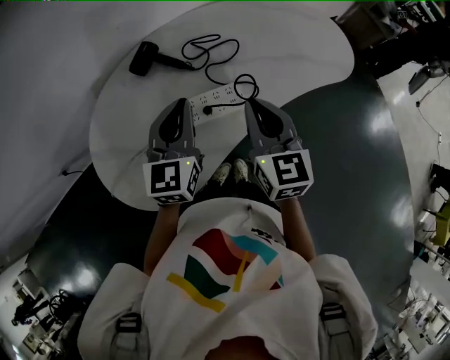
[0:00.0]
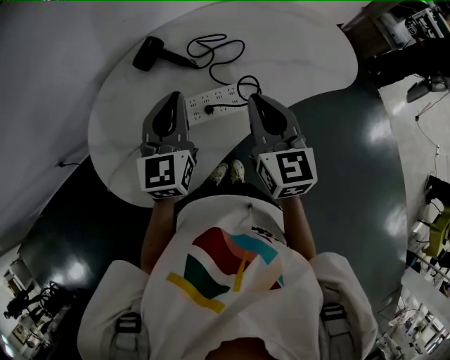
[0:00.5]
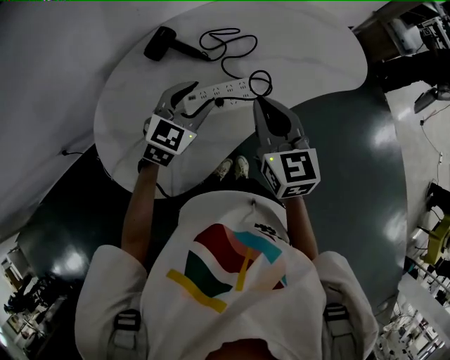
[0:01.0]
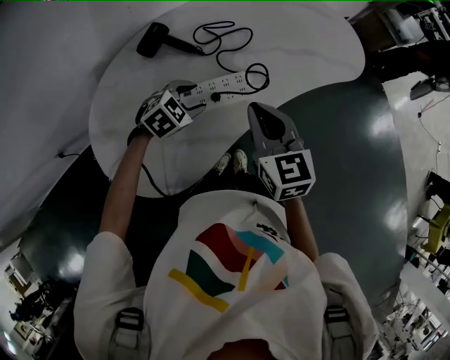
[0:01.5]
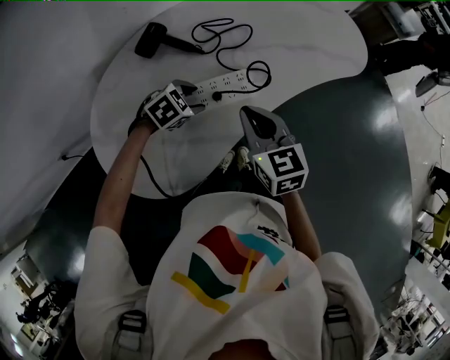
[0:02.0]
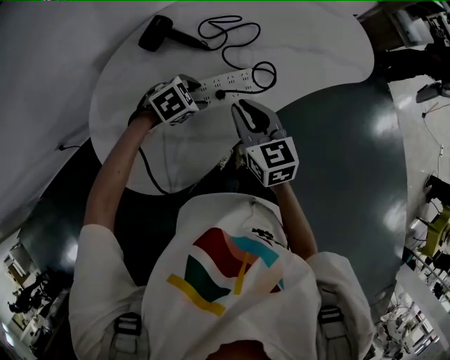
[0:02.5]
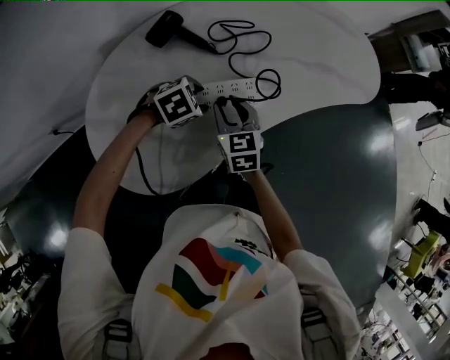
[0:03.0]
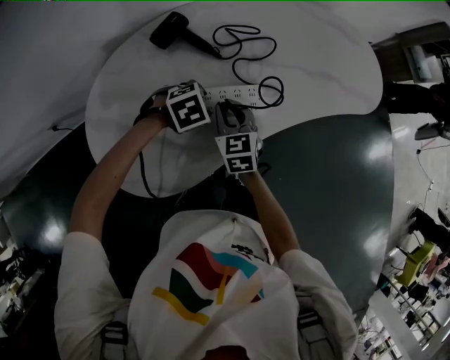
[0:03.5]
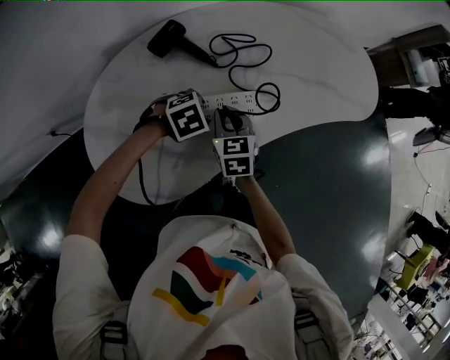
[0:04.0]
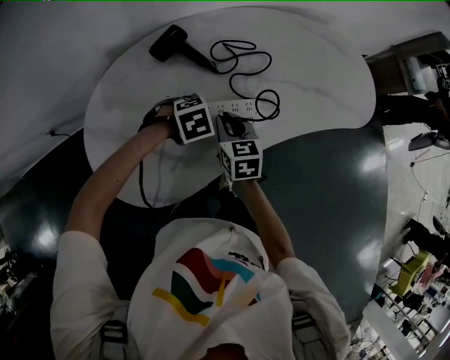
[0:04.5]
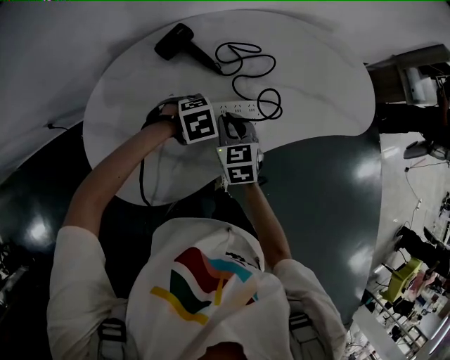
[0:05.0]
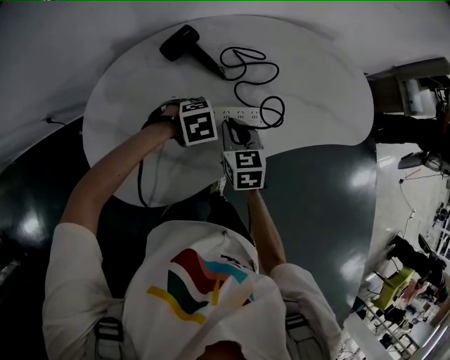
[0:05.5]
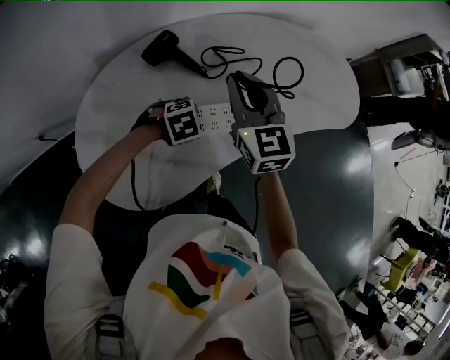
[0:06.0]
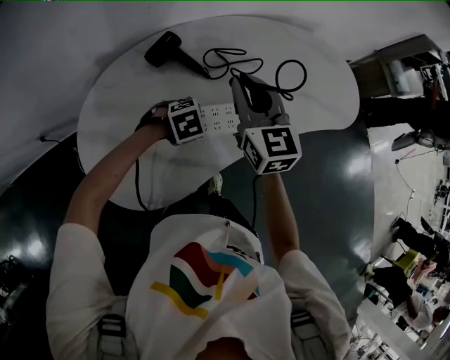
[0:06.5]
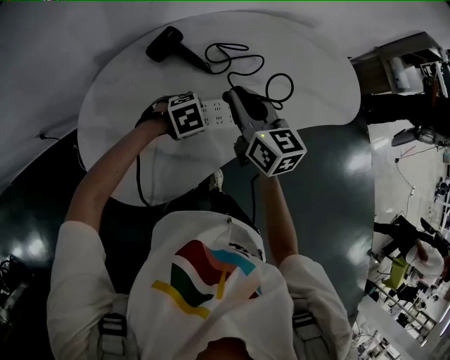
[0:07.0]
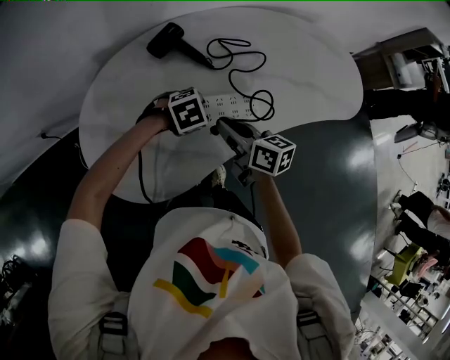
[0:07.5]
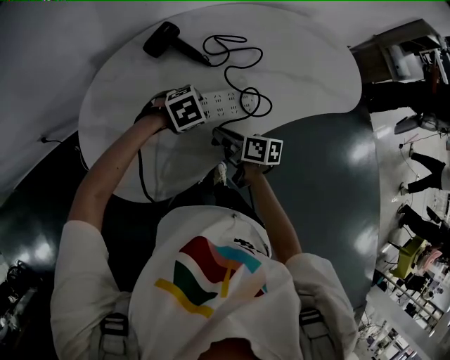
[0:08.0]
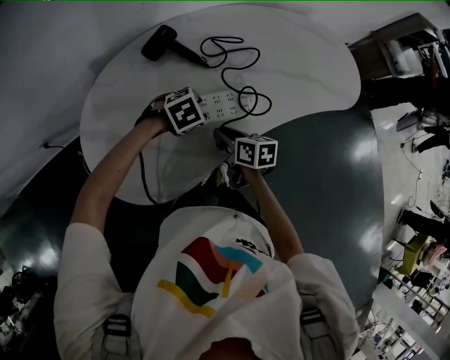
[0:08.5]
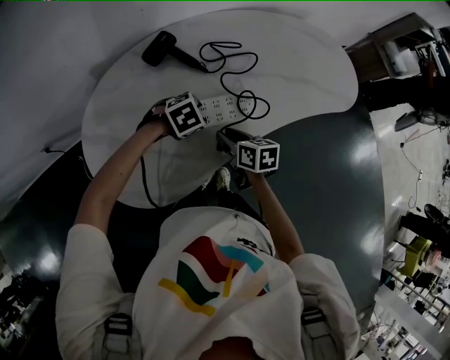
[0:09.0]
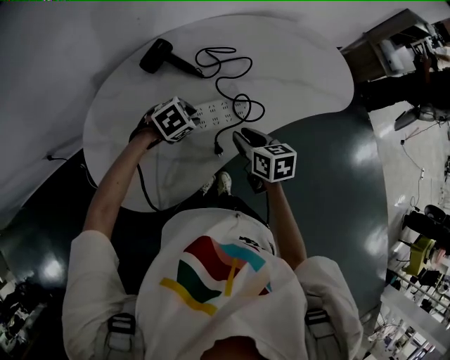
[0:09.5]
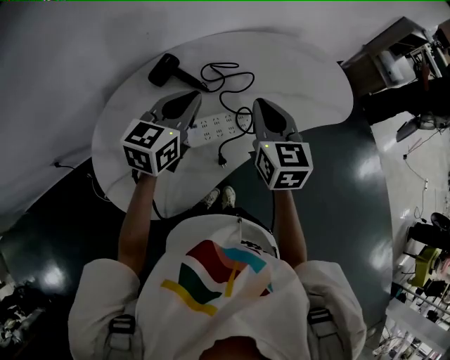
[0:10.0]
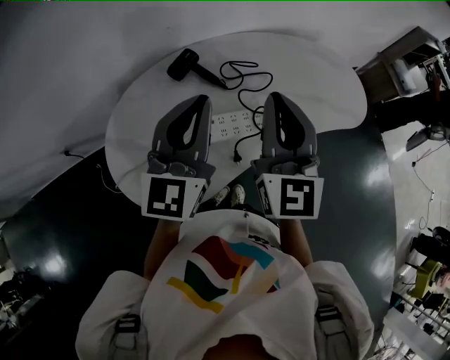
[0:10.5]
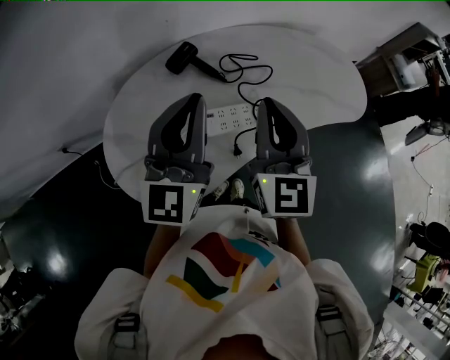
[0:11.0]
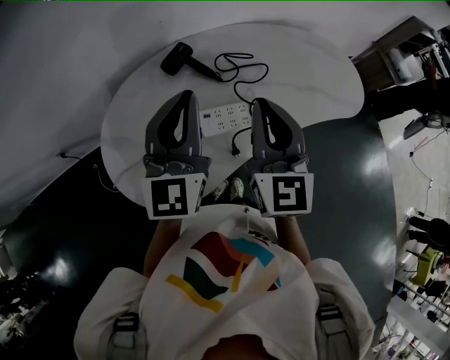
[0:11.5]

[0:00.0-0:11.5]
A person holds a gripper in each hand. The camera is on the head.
0:00.0 to 0:02.0: The left gripper is displaced downward by roughly 20 cm, tilts its fingers roughly 50 degrees downward, and opens its fingers; the right gripper goes approximately 10 cm downward.
0:02.0 to 0:04.0: The right gripper travels downward, to the left and forward by roughly 15 cm.
0:04.0 to 0:06.0: The right gripper travels upward by about 20 cm, and rotates some 30 degrees.
0:06.0 to 0:07.5: The right gripper moves downward, roughly 15 cm, and twists roughly 40 degrees clockwise, seen from behind.
0:07.5 to 0:09.5: The right gripper reaches approximately 10 cm downward, then returns, and rotates approximately 30 degrees. The left gripper closes.
0:09.5 to 0:11.5: The two grippers go about 30 cm upward. The left gripper tilts its fingers approximately 70 degrees upward, and closes up. Meanwhile the right gripper points its fingers some 40 degrees further upward, and closes.

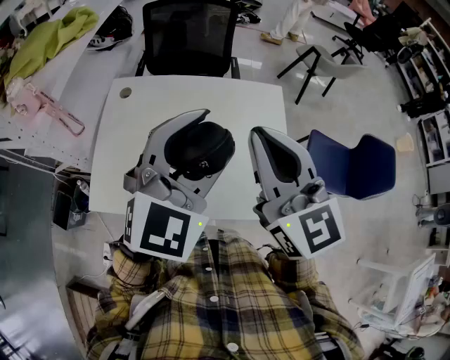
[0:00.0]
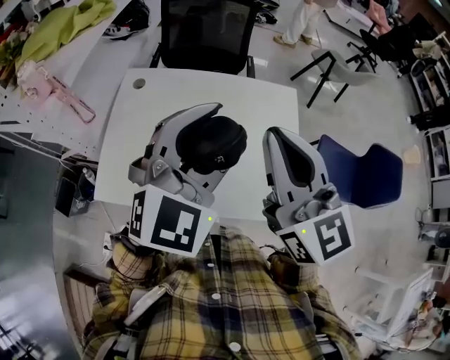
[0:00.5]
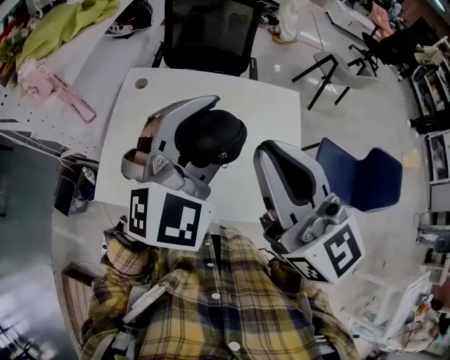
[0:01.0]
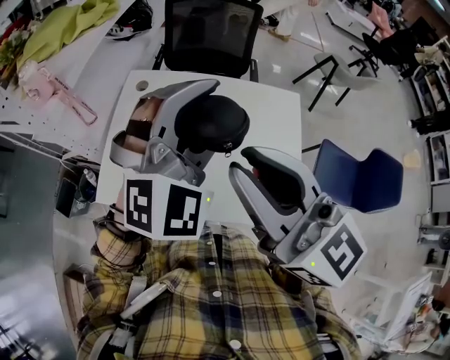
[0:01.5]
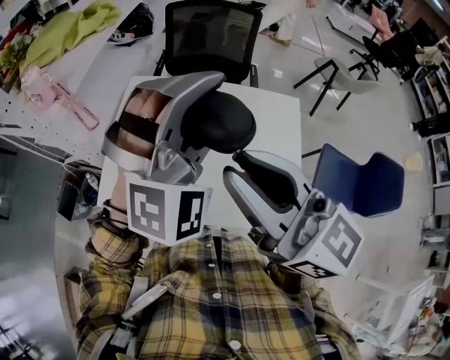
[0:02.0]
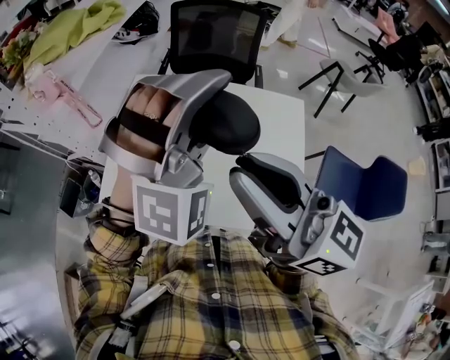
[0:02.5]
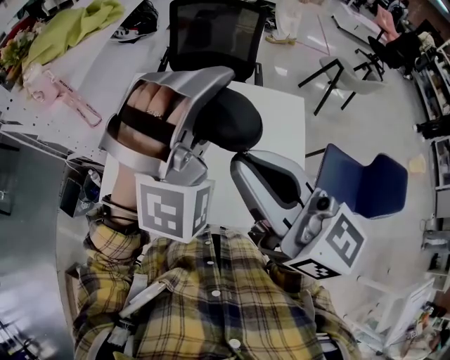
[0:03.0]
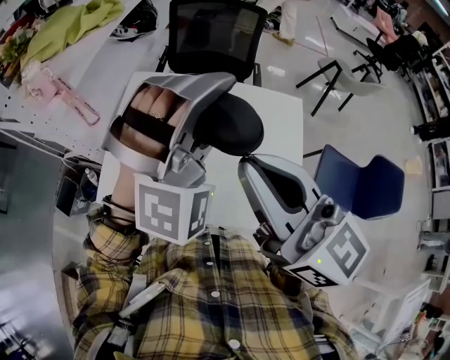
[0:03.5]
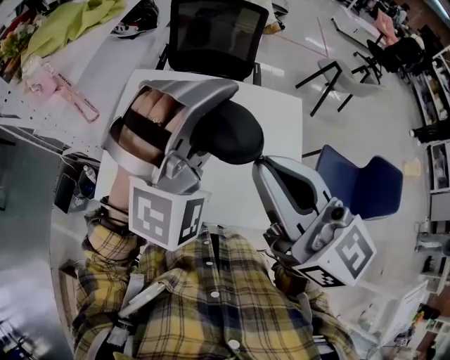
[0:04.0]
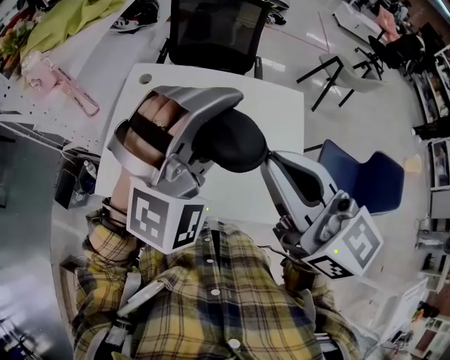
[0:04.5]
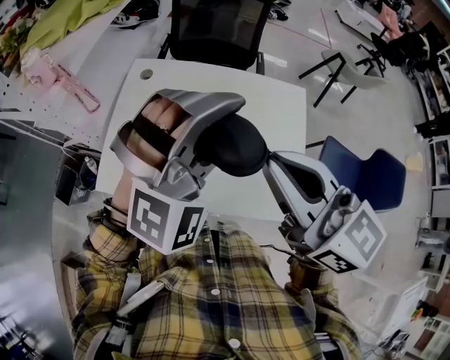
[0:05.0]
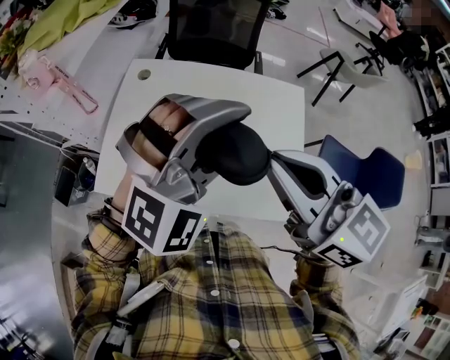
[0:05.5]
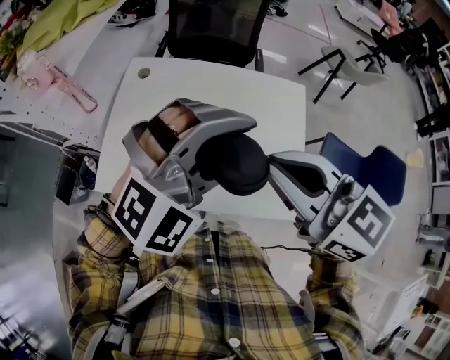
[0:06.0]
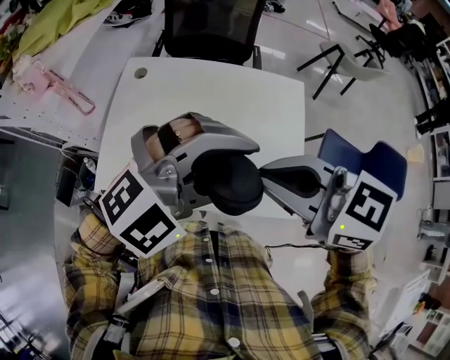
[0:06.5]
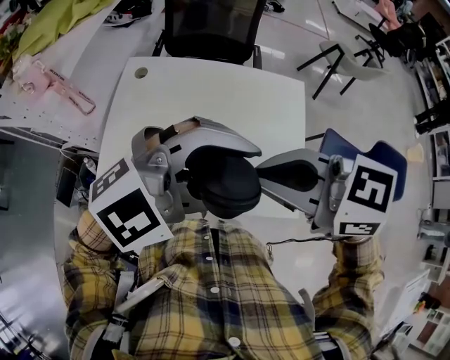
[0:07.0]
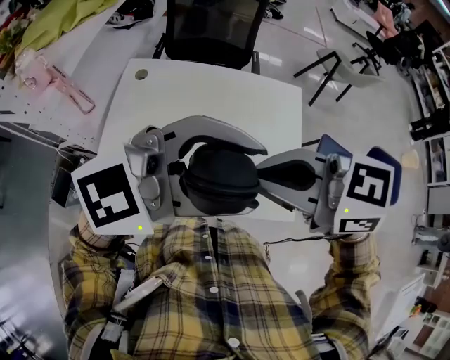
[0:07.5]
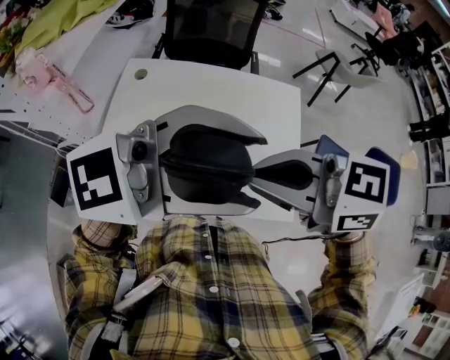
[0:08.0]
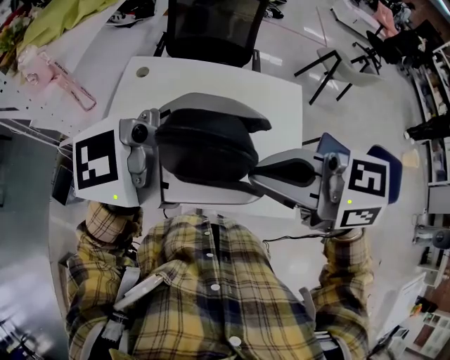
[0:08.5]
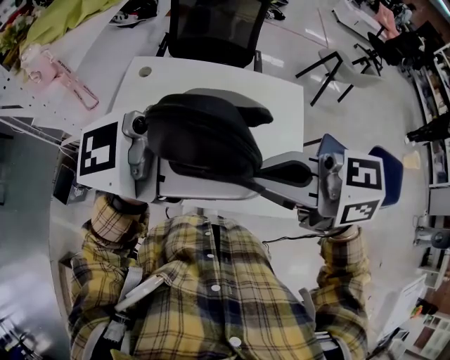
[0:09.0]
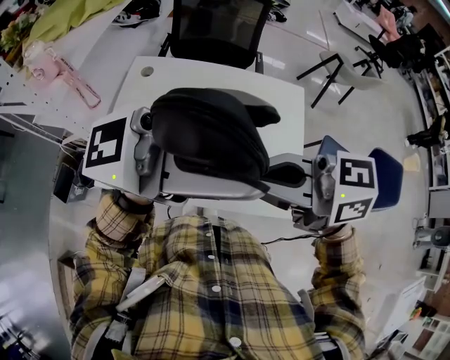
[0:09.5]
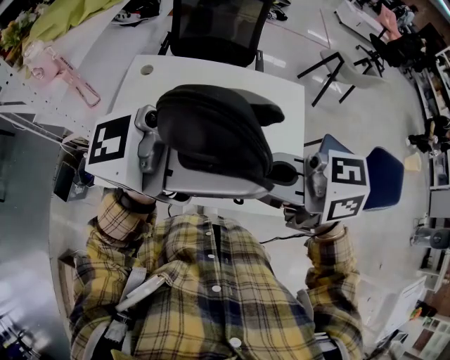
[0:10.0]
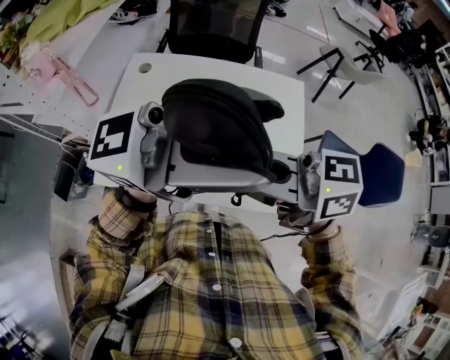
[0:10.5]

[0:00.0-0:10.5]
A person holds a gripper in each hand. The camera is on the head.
0:00.0 to 0:02.0: The left gripper moves forward, about 5 cm, and rotates around the line of its fingers by approximately 40 degrees, clockwise from behind; the right gripper travels to the left by roughly 5 cm, and swivels some 30 degrees.
0:02.0 to 0:04.0: There are only small adjustments of the grippers.
0:04.0 to 0:06.5: The right gripper heads downward, covering roughly 5 cm, and rotates approximately 30 degrees. Meanwhile the left gripper moves approximately 10 cm, and changes its angle by some 50 degrees.
0:06.5 to 0:08.5: The left gripper goes some 10 cm upward, and points its fingers some 40 degrees further upward.
0:08.5 to 0:10.5: There are only small adjustments of the grippers.

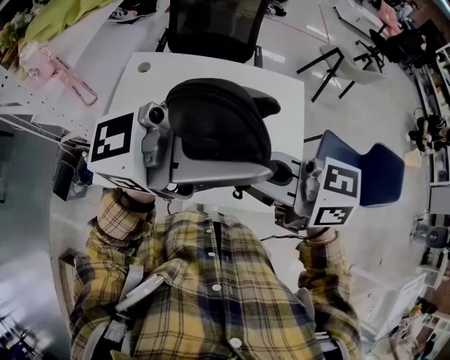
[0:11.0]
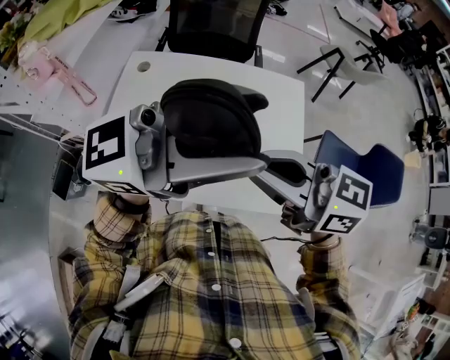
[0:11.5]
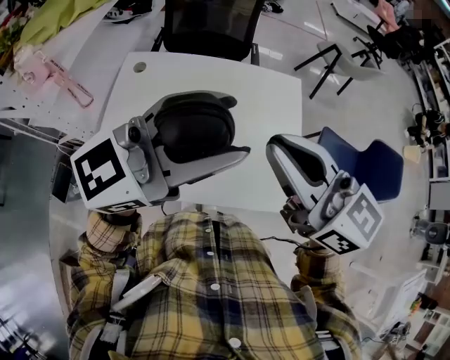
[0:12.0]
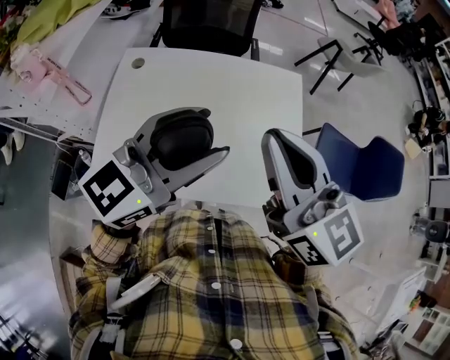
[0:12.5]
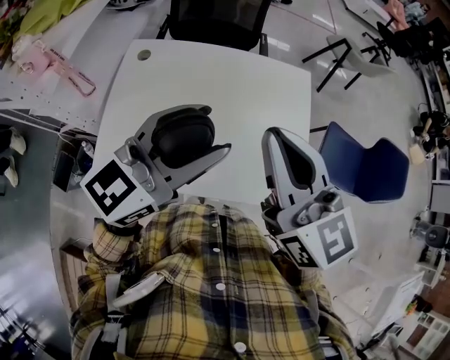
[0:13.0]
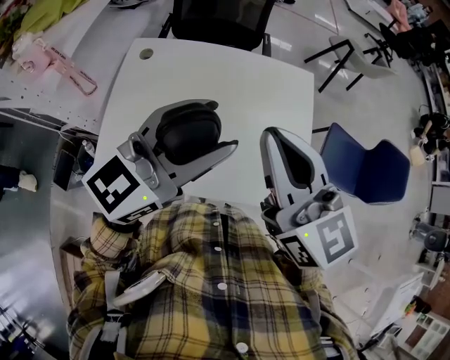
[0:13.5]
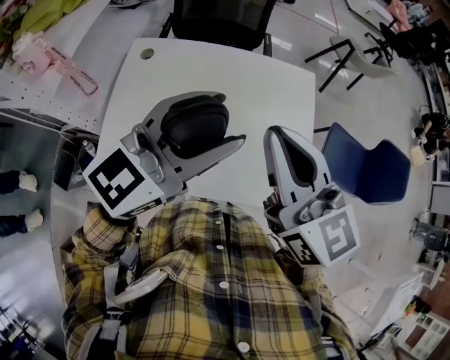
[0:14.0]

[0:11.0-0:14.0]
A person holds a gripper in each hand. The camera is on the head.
0:11.0 to 0:12.5: The right gripper ends up approximately 10 cm from where it was, and turns by some 50 degrees. Meanwhile the left gripper shifts about 10 cm downward, and swivels roughly 40 degrees.
0:12.5 to 0:14.0: There are only small adjustments of the grippers.

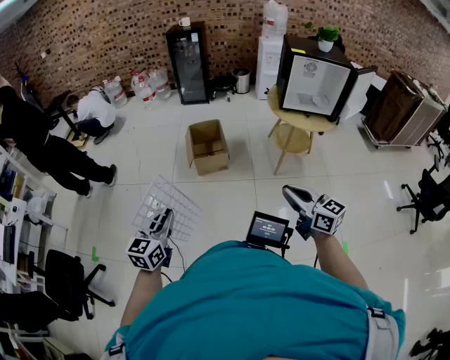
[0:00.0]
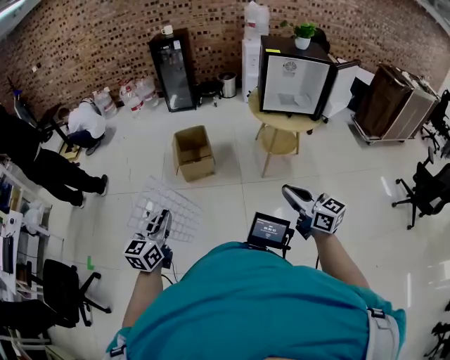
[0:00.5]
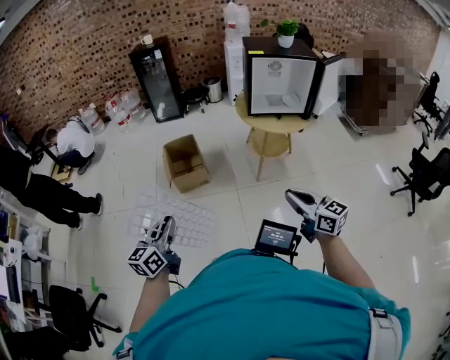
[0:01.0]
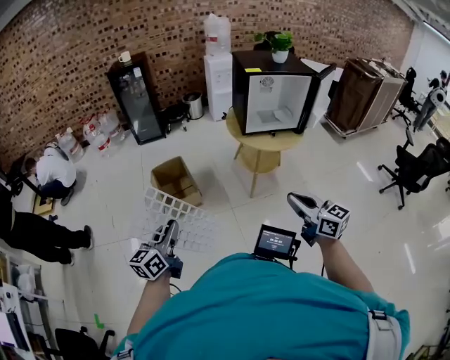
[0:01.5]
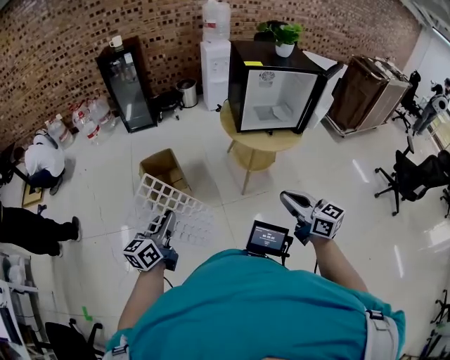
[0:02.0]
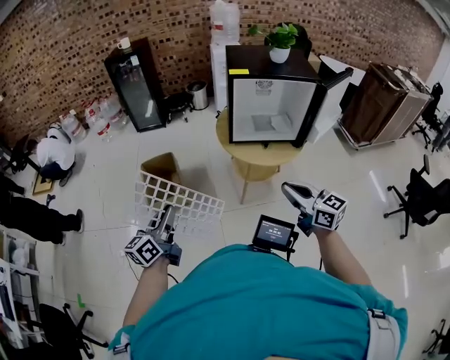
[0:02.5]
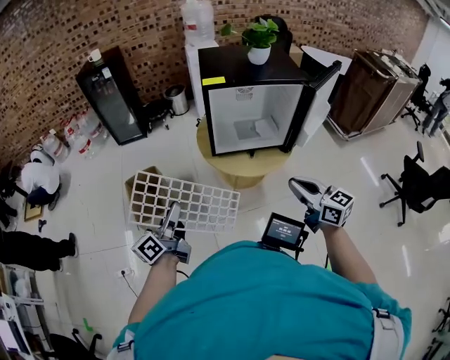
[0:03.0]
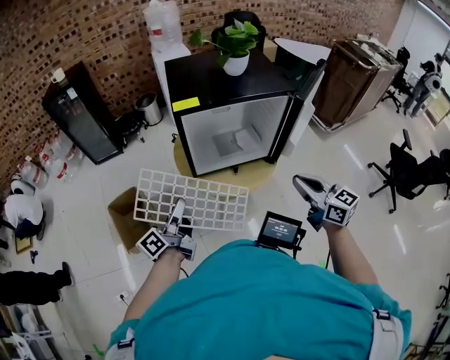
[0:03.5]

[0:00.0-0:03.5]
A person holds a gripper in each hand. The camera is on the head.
0:00.0 to 0:02.0: The left gripper shifts roughly 30 cm forward, and rotates approximately 30 degrees; the right gripper moves forward, roughly 20 cm.
0:02.0 to 0:03.5: The grippers both shift to the right and forward by about 40 cm. The left gripper swivels roughly 30 degrees.
